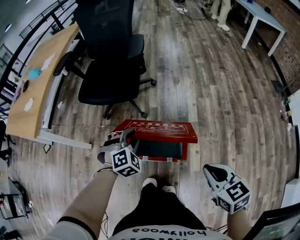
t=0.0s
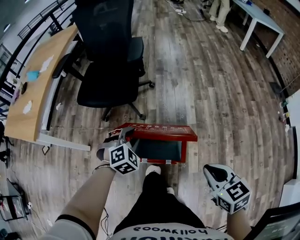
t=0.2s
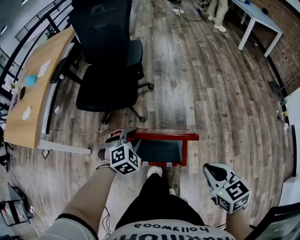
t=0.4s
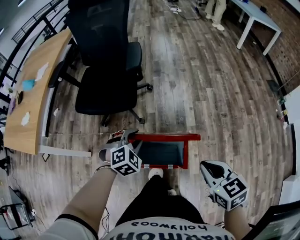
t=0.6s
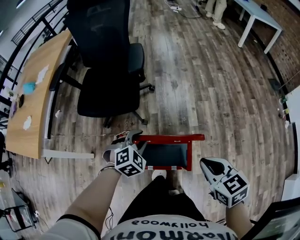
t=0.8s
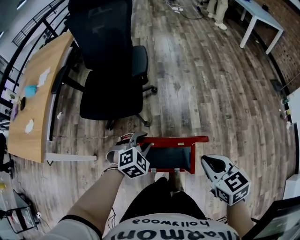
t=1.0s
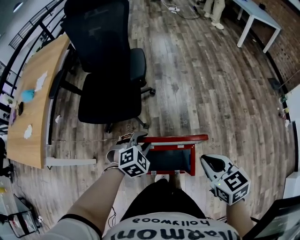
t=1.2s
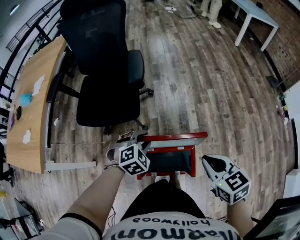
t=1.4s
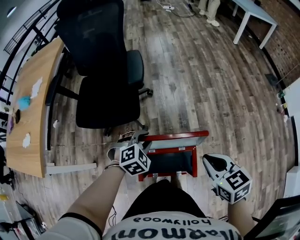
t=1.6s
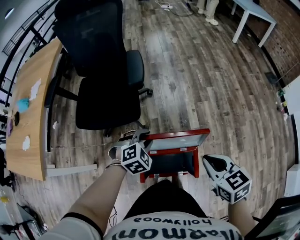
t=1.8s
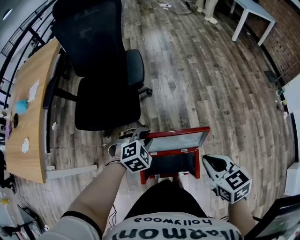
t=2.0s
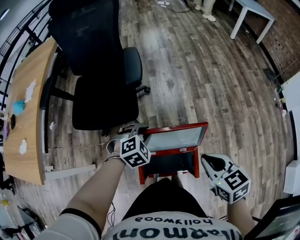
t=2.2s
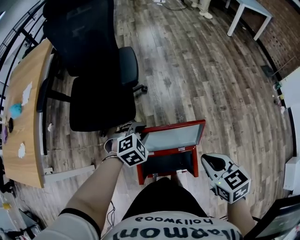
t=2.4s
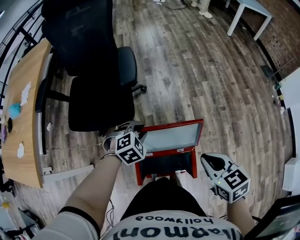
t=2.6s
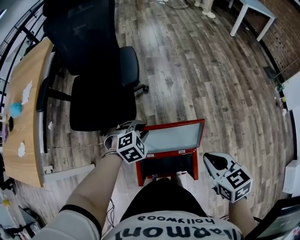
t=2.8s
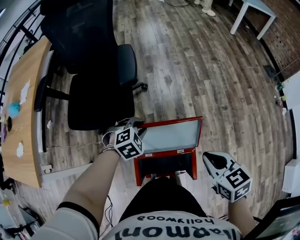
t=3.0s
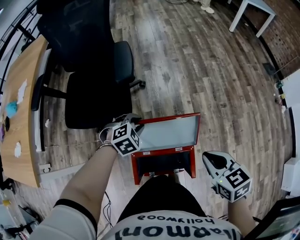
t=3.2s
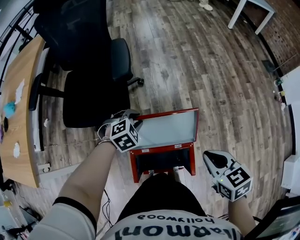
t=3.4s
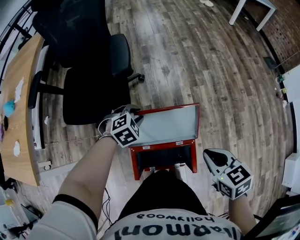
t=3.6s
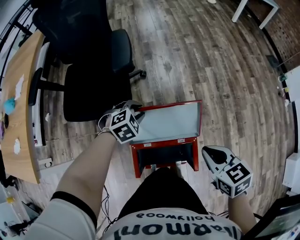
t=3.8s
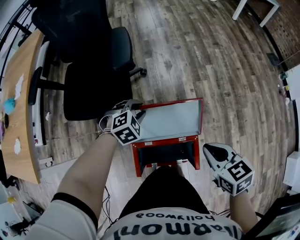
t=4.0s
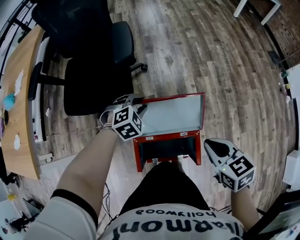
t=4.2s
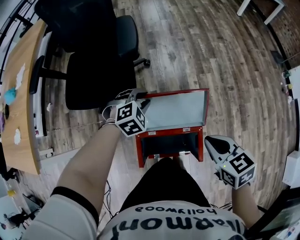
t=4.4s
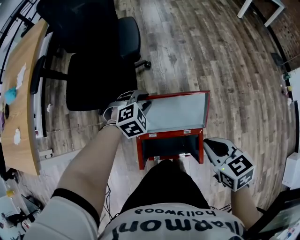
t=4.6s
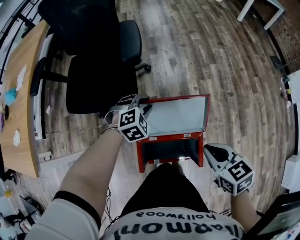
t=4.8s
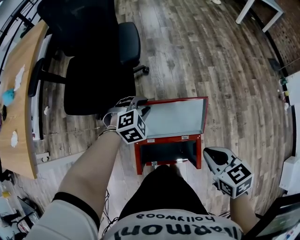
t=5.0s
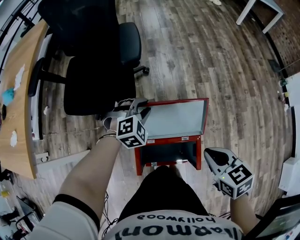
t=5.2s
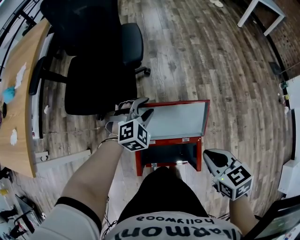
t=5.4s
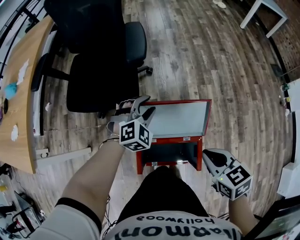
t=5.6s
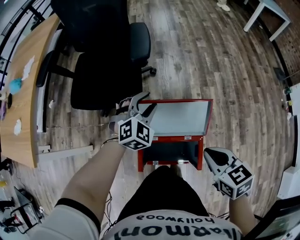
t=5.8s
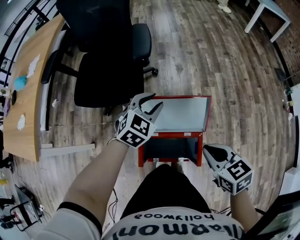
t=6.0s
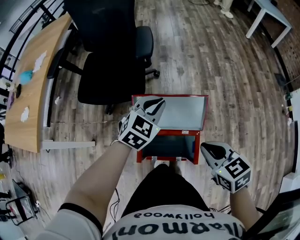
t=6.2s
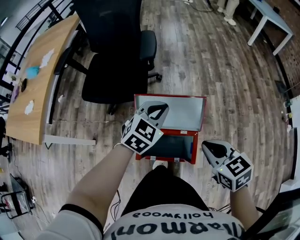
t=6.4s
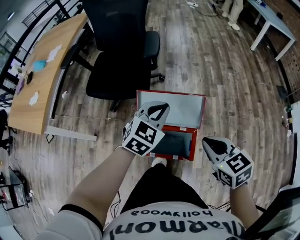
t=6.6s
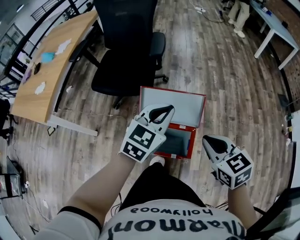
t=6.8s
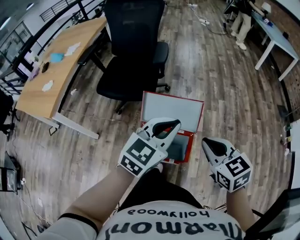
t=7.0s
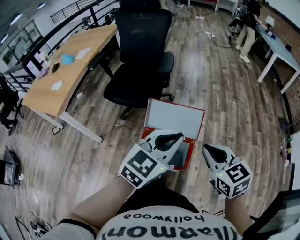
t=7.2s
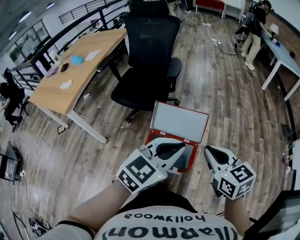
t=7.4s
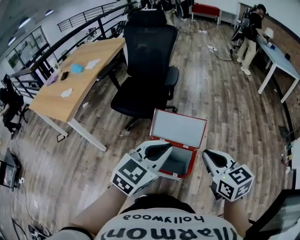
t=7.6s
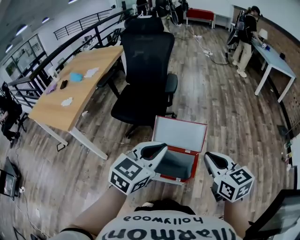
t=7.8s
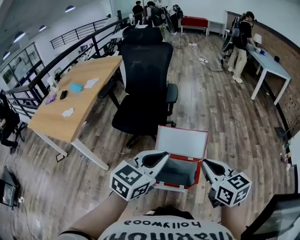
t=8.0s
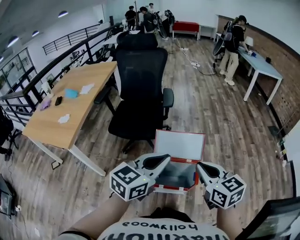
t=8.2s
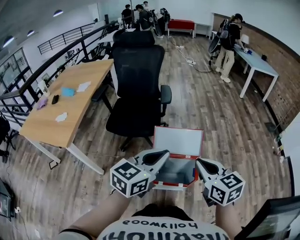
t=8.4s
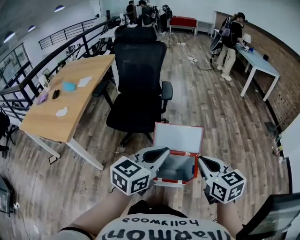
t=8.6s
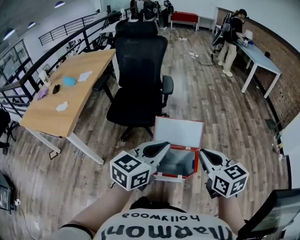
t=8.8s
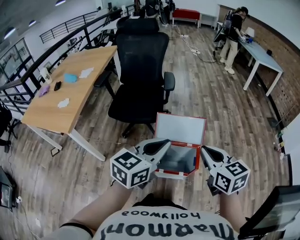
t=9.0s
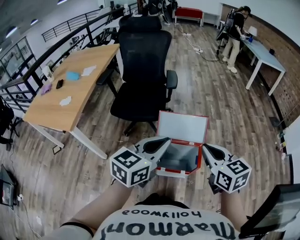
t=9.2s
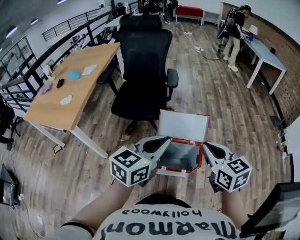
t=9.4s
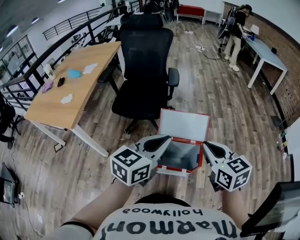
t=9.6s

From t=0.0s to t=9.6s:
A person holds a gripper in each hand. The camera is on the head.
From t=0.0s to t=1.6s: The grippers both shift forward by some 15 cm. The left gripper turns by about 20 degrees.
From t=1.6s to t=3.2s: The right gripper changes place by some 5 cm. The left gripper heads forward and downward, covering about 10 cm.
From t=3.2s to t=4.8s: The grippers make only small movements.
From t=4.8s to t=6.4s: The left gripper travels upward and backward by approximately 20 cm, and rotates approximately 40 degrees. The right gripper shifts roughly 5 cm upward.
From t=6.4s to t=8.0s: The right gripper goes about 20 cm upward and backward, and rotates approximately 20 degrees, while the left gripper moves backward and upward, roughly 30 cm, and turns by approximately 20 degrees.
From t=8.0s to t=9.6s: The grippers make only small movements.

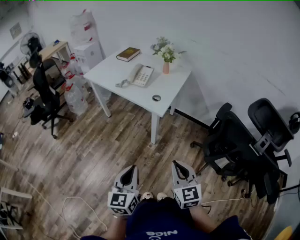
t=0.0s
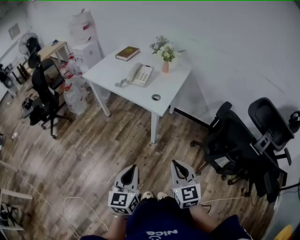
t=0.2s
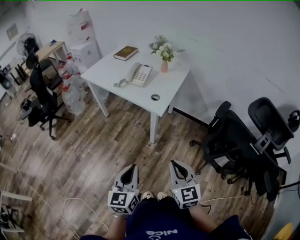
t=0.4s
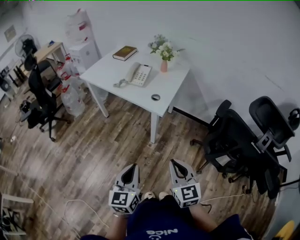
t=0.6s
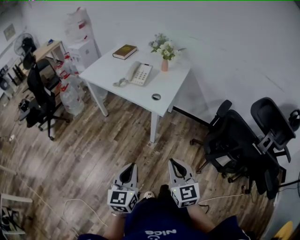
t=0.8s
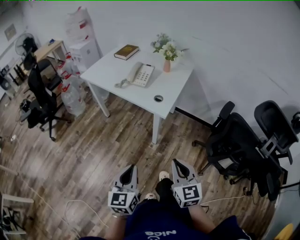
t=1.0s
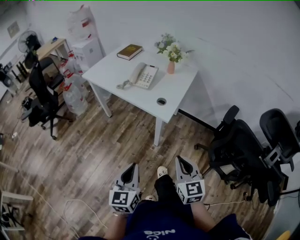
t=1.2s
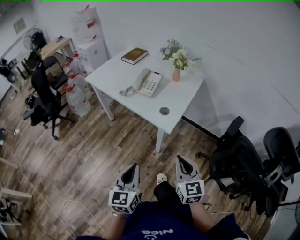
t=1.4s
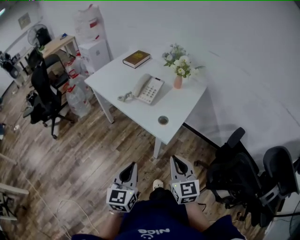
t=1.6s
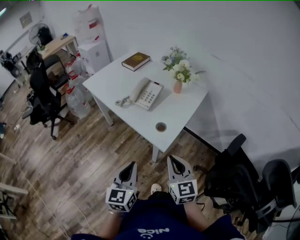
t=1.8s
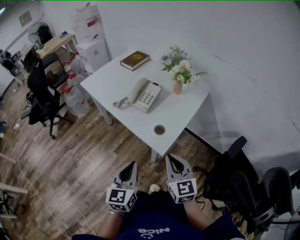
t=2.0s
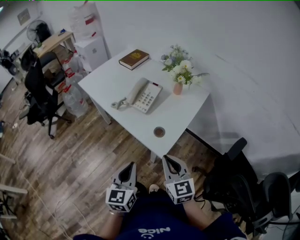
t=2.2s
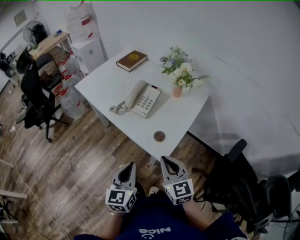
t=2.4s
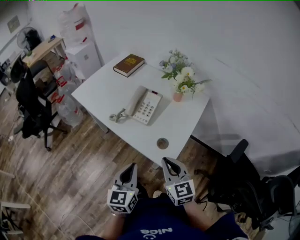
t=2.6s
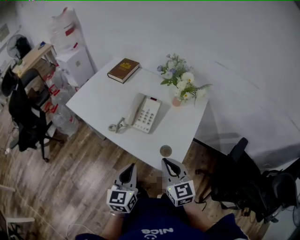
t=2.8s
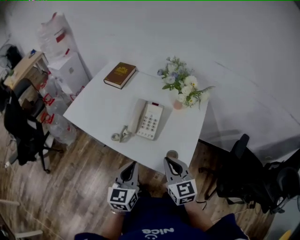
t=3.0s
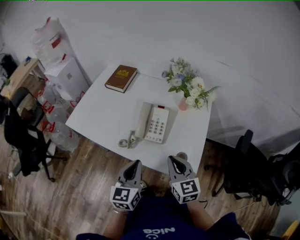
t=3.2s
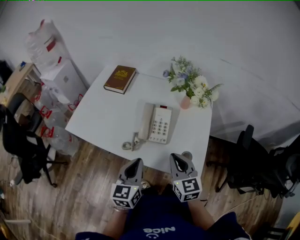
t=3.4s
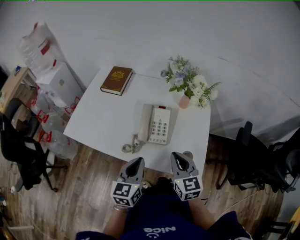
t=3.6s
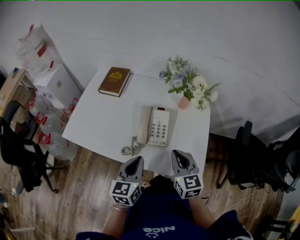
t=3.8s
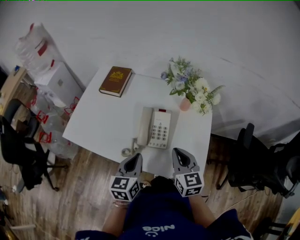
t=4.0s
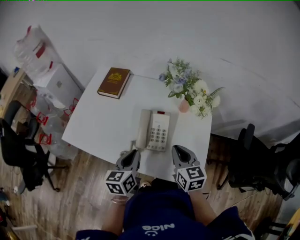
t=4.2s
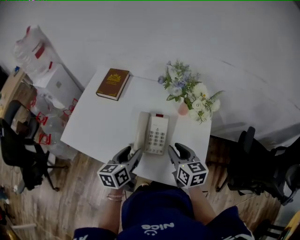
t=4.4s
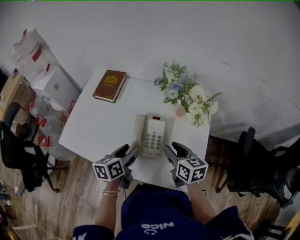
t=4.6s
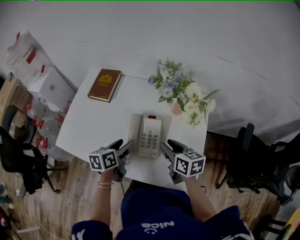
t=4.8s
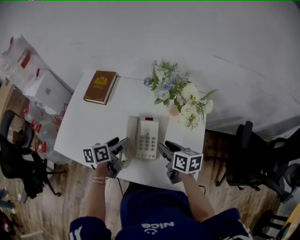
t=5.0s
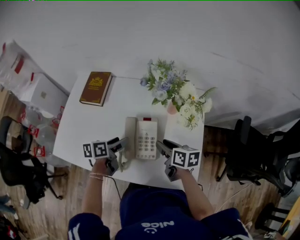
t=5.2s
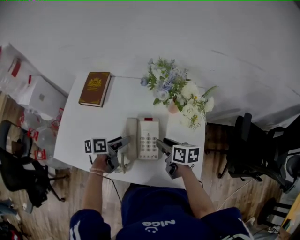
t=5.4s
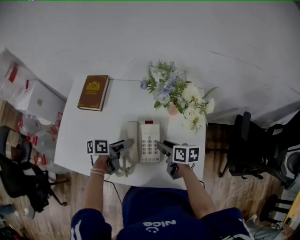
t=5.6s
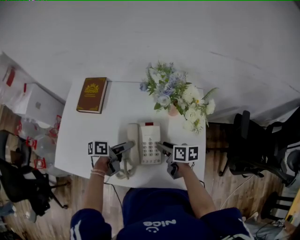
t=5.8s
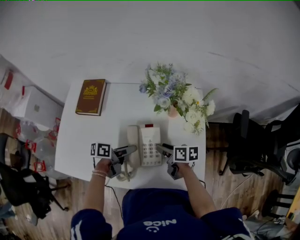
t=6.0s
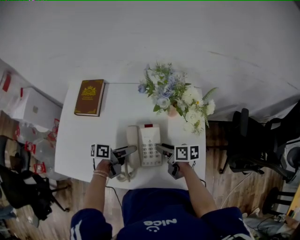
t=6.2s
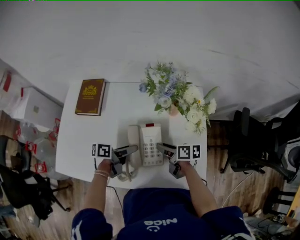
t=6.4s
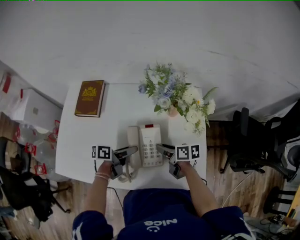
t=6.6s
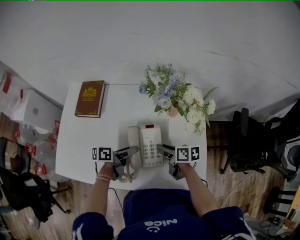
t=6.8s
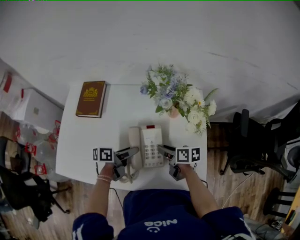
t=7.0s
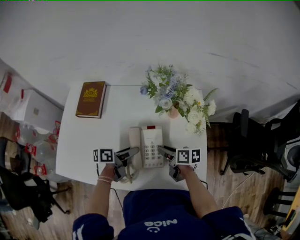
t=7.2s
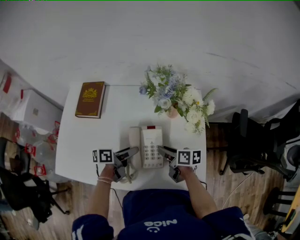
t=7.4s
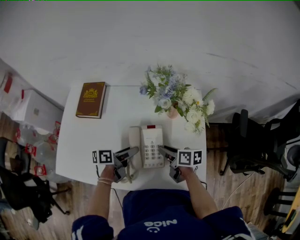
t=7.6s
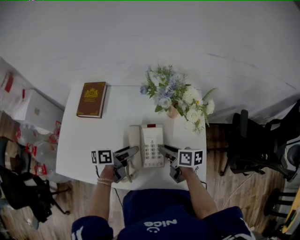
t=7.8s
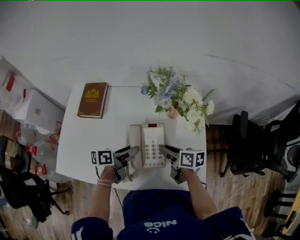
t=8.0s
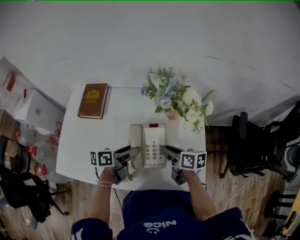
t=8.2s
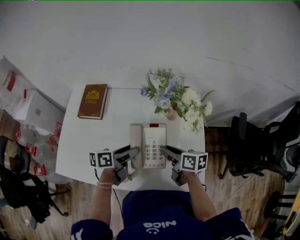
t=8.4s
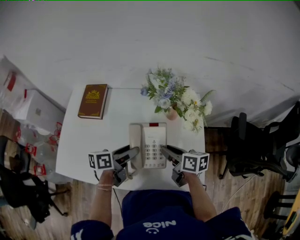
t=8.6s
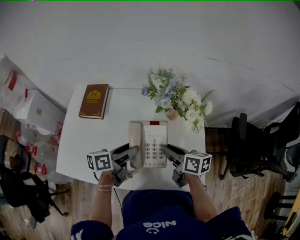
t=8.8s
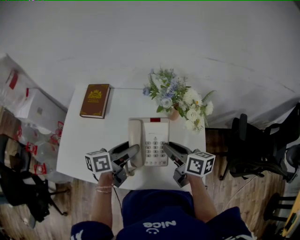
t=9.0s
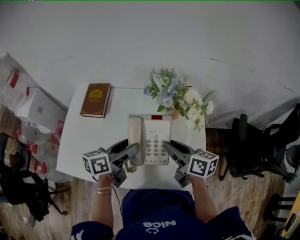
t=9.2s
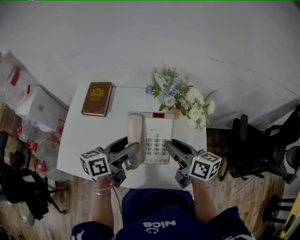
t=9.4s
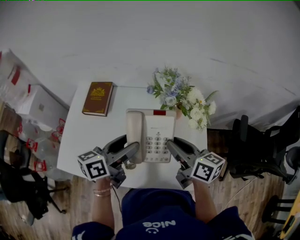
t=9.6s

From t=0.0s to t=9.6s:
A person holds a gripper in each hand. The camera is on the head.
From t=0.0s to t=1.6s: Both grippers travel together forward, approximately 20 cm.
From t=1.6s to t=3.2s: The right gripper is displaced forward and to the left by roughly 30 cm. Meanwhile the left gripper travels forward by about 30 cm.
From t=3.2s to t=4.8s: Both grippers move forward, roughly 20 cm. The right gripper rotates roughly 30 degrees, and opens up. The left gripper rotates some 40 degrees, and opens its fingers.
From t=4.8s to t=6.4s: The two grippers go approximately 10 cm downward. The left gripper rotates some 40 degrees. Meanwhile the right gripper changes its angle by about 30 degrees.
From t=6.4s to t=8.0s: The grippers make only small movements.
From t=8.0s to t=9.6s: Both grippers move upward, about 15 cm. The right gripper swivels approximately 20 degrees, while the left gripper changes its angle by approximately 30 degrees.

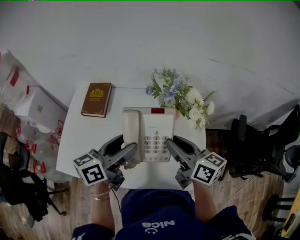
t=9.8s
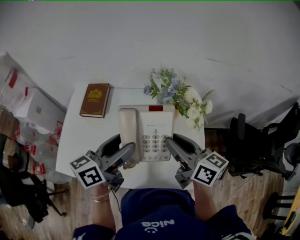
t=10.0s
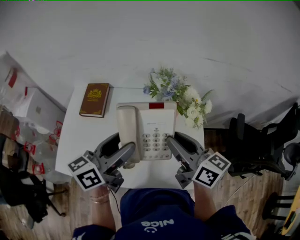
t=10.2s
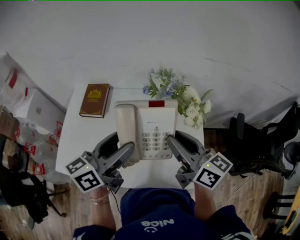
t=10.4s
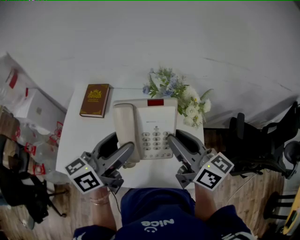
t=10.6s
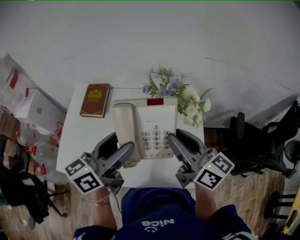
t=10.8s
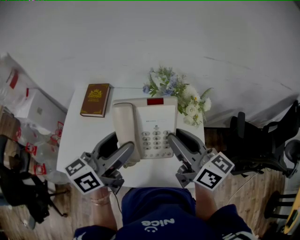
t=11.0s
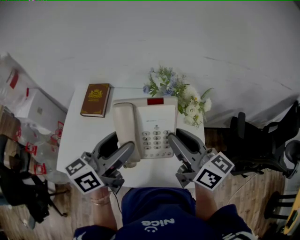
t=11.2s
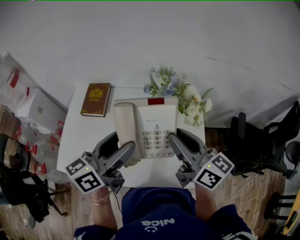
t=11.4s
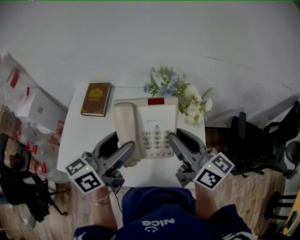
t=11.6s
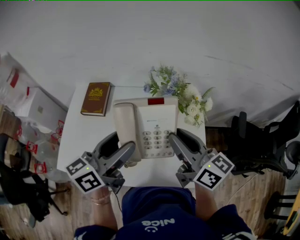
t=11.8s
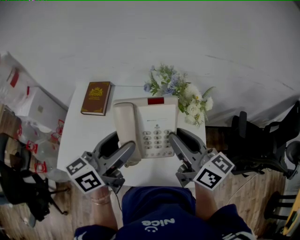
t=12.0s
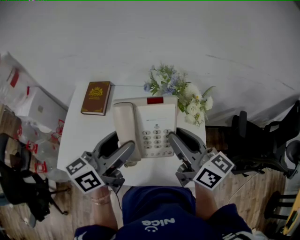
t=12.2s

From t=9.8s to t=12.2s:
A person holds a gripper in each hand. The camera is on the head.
From t=9.8s to t=11.0s: Both grippers travel together upward, roughly 5 cm.
From t=11.0s to t=12.2s: Both grippers stay about where they are.

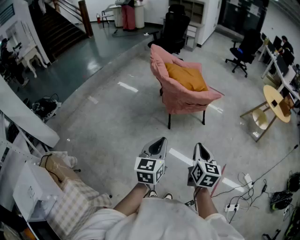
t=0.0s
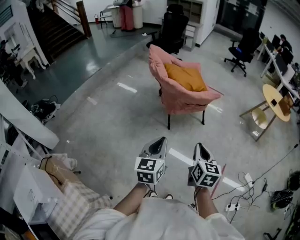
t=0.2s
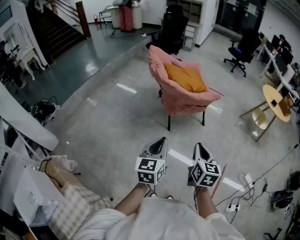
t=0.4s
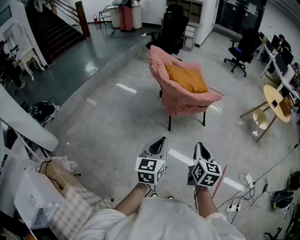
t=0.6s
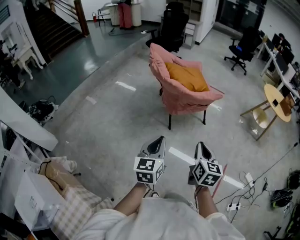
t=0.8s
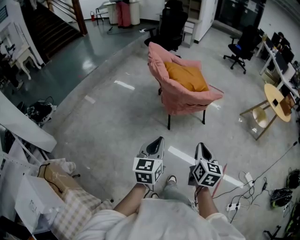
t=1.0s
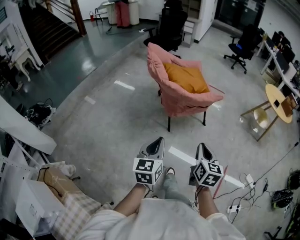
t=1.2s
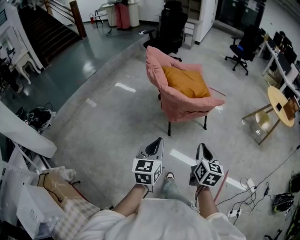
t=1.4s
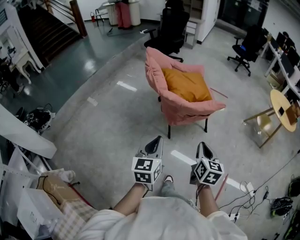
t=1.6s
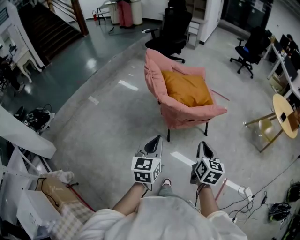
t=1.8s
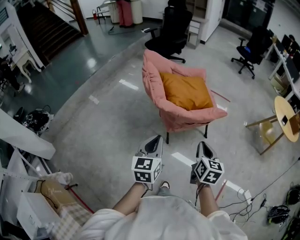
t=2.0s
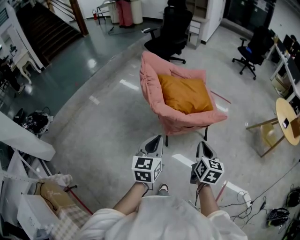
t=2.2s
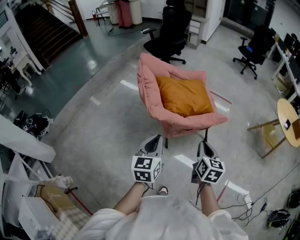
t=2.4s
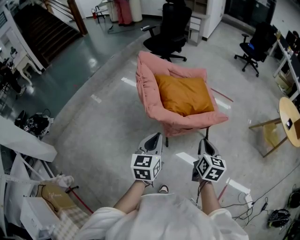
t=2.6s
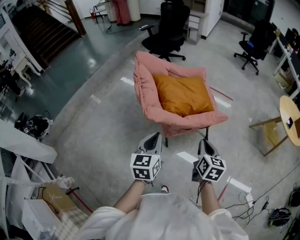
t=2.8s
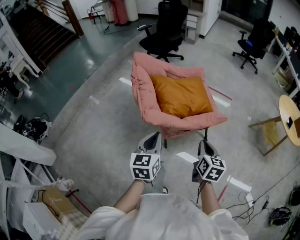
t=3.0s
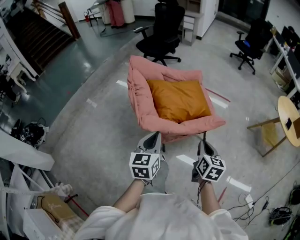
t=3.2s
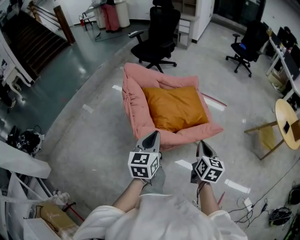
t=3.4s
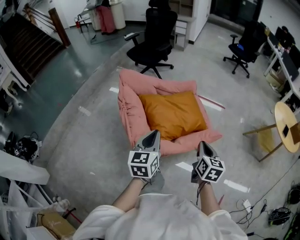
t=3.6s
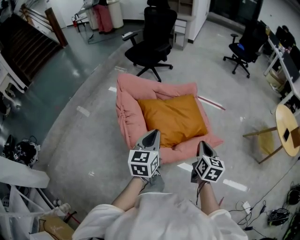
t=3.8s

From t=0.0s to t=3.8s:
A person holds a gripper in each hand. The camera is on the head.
From t=0.0s to t=1.2s: Both grippers move forward, roughly 10 cm.
From t=1.2s to t=2.6s: Both grippers move forward, approximately 30 cm.
From t=2.6s to t=3.8s: Both grippers move forward, roughly 25 cm.
